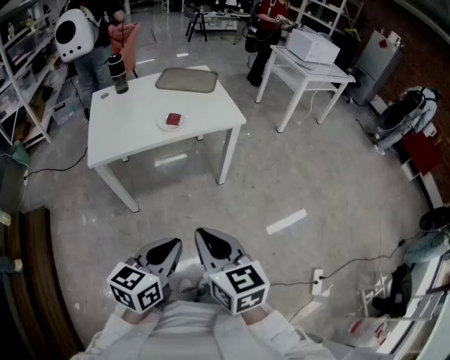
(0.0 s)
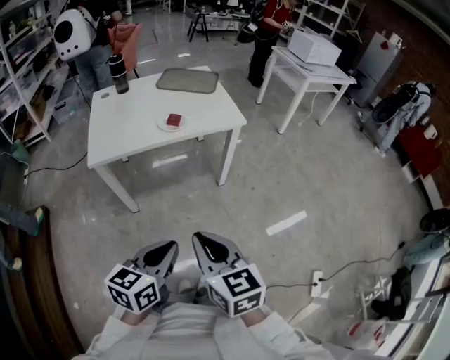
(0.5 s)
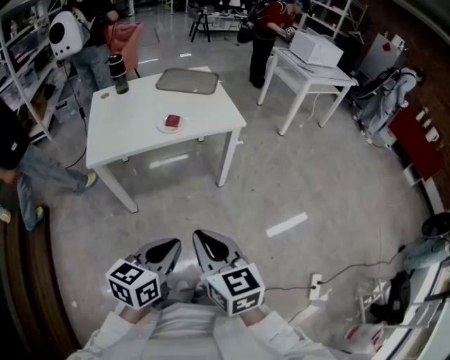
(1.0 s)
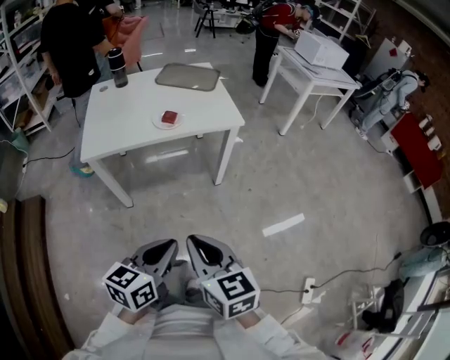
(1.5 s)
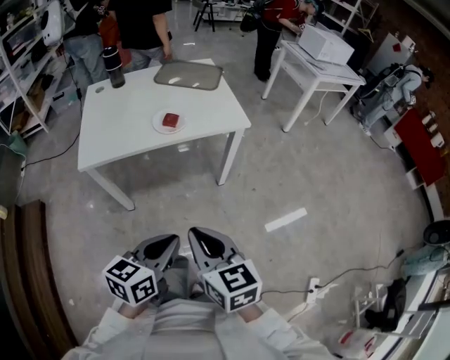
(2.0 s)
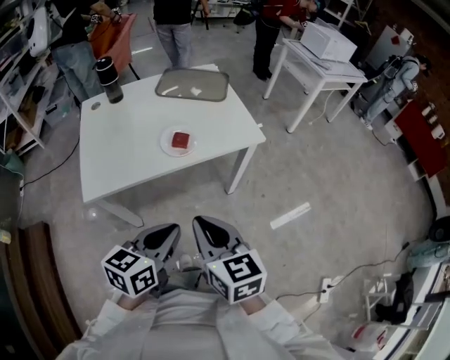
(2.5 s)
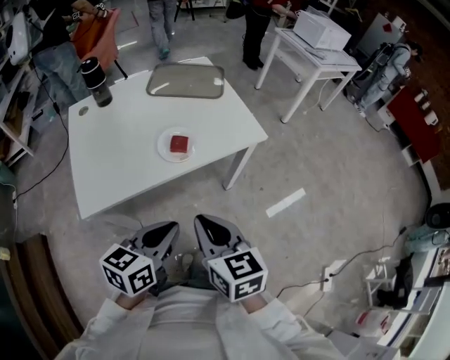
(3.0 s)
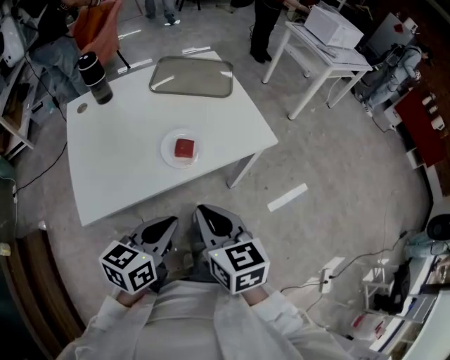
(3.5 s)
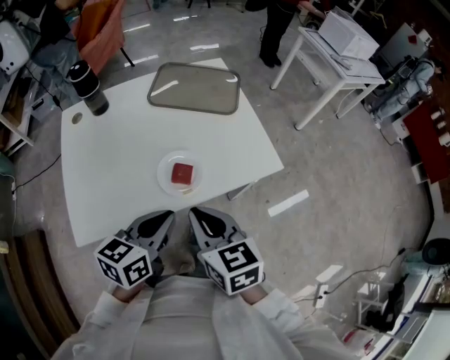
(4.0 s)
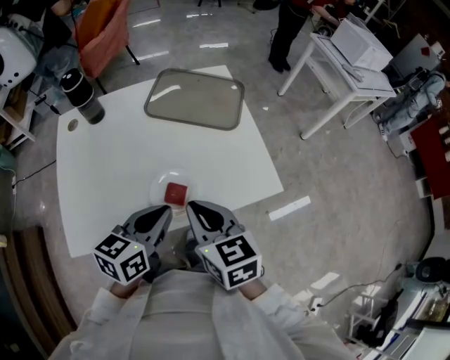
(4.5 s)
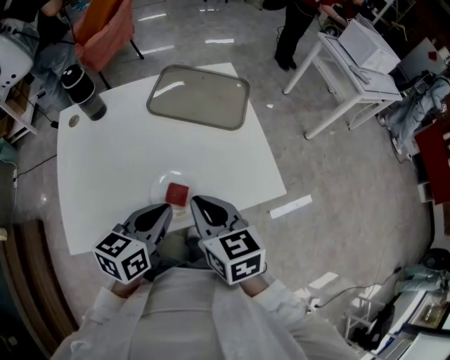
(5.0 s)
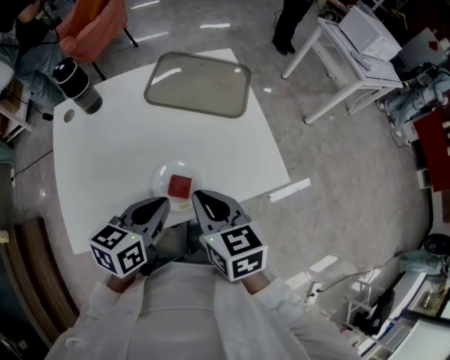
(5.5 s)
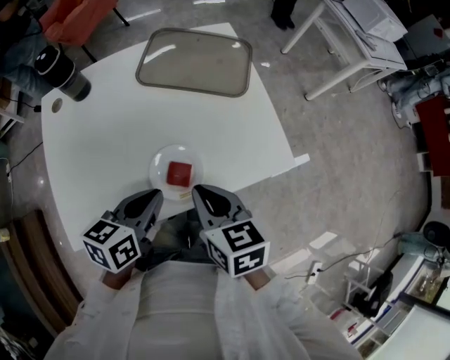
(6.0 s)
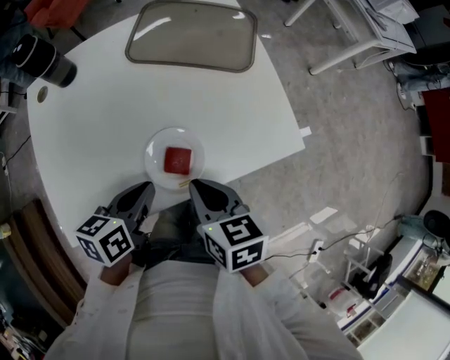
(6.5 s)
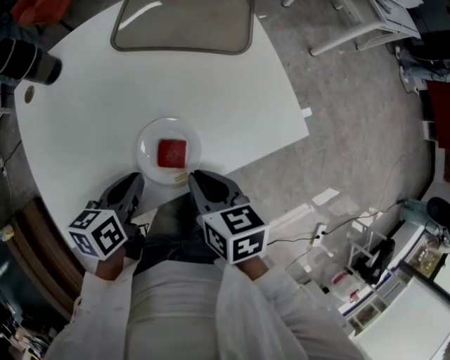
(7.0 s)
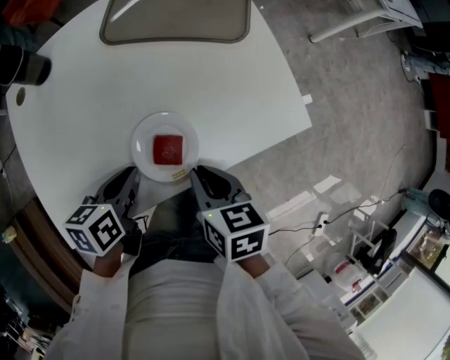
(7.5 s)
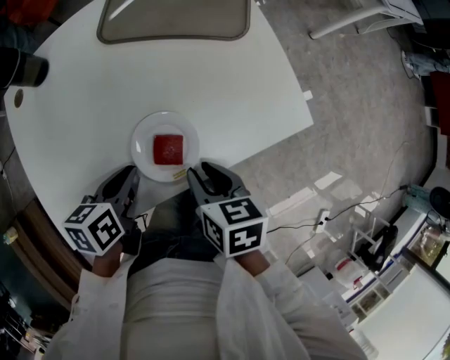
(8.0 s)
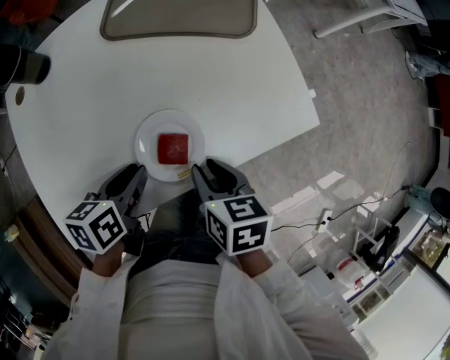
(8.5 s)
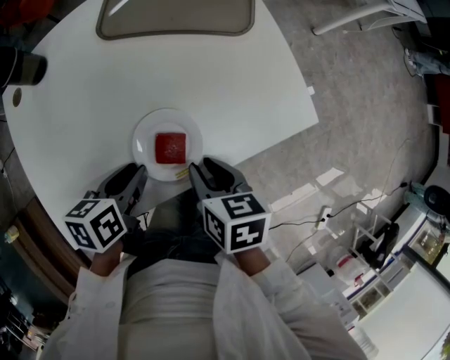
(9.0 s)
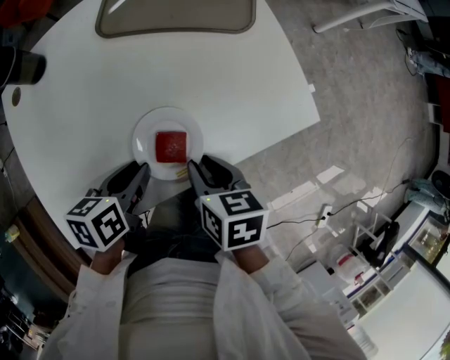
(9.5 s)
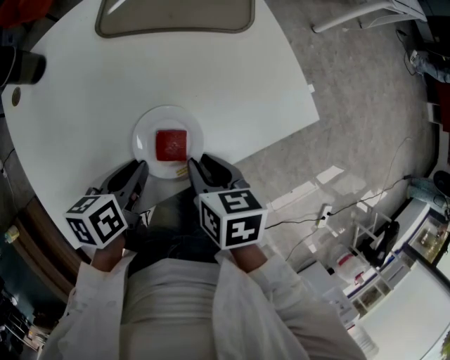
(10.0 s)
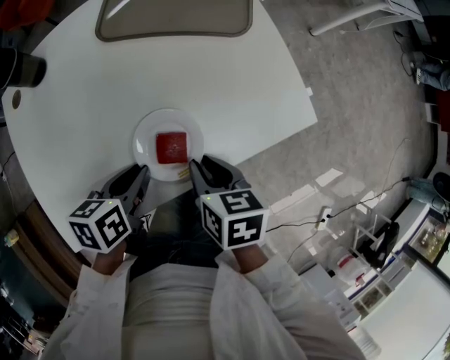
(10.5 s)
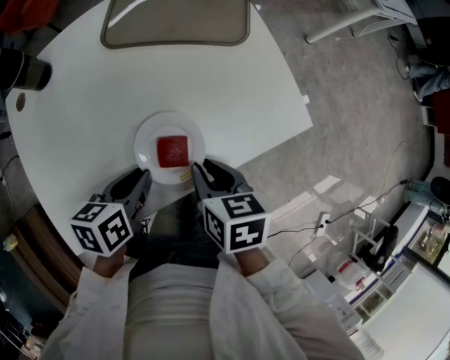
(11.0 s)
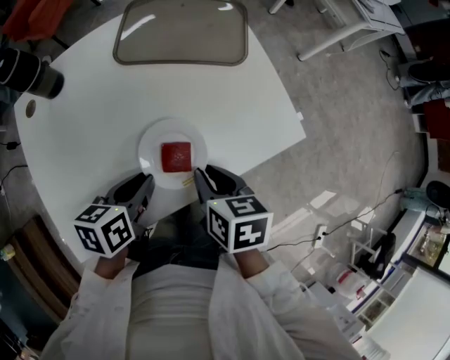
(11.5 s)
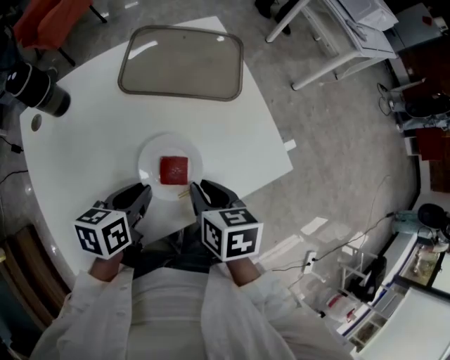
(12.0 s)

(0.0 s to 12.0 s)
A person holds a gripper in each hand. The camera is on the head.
0.0 s - 2.0 s: The grippers both shift forward by about 10 cm.
2.0 s - 4.0 s: The right gripper travels forward by about 35 cm; the left gripper moves forward and to the left, approximately 40 cm.
4.0 s - 6.0 s: Both grippers move forward, about 10 cm.
6.0 s - 8.0 s: The grippers both shift downward by some 10 cm. The right gripper changes its angle by roughly 20 degrees, and opens up.
8.0 s - 12.0 s: The grippers make only small movements.

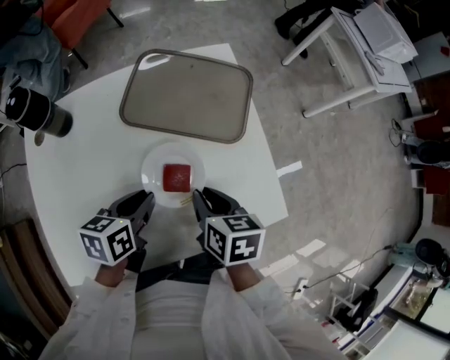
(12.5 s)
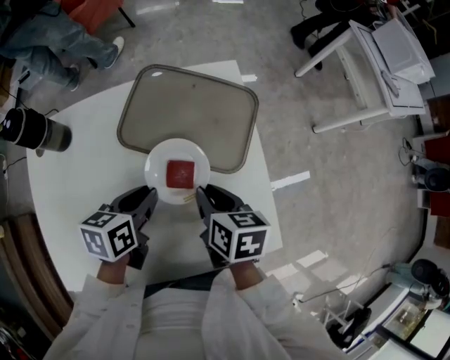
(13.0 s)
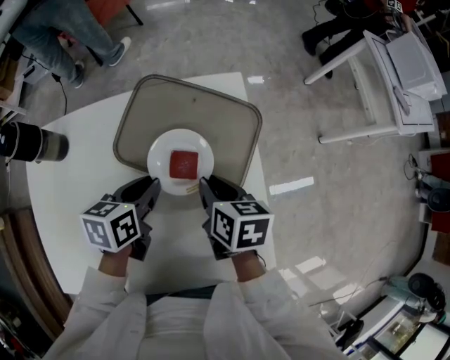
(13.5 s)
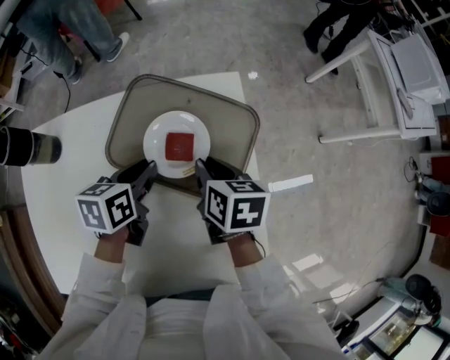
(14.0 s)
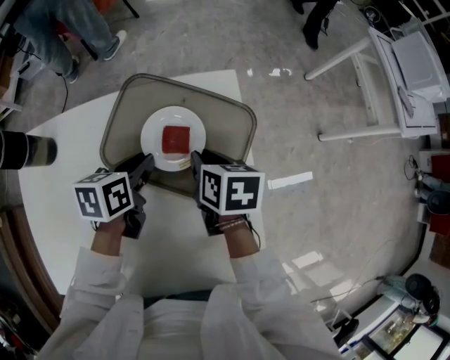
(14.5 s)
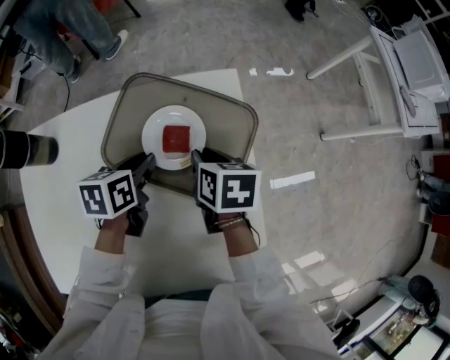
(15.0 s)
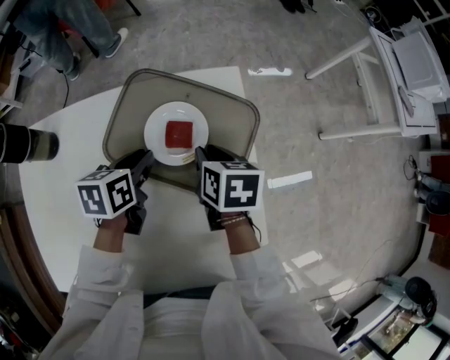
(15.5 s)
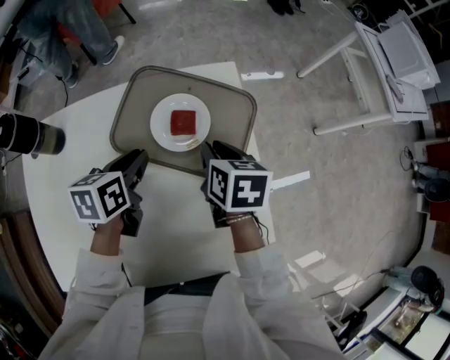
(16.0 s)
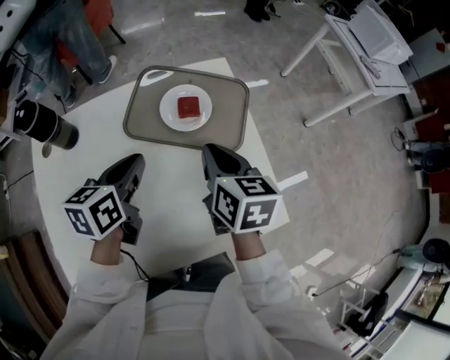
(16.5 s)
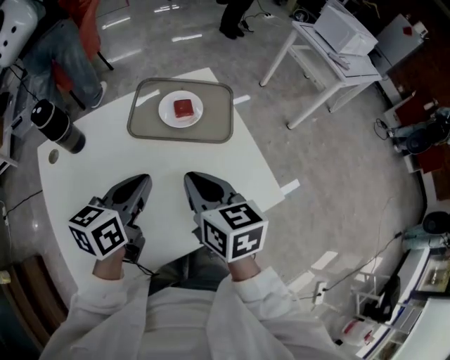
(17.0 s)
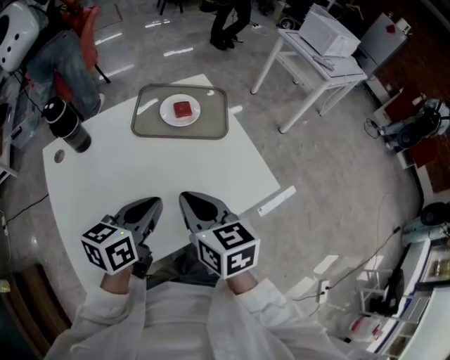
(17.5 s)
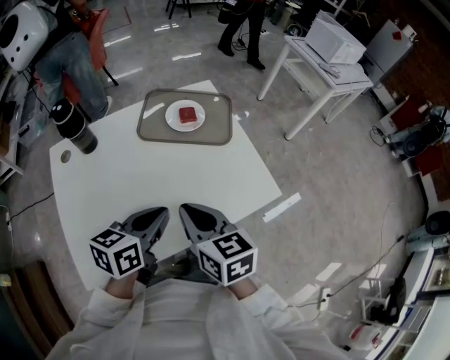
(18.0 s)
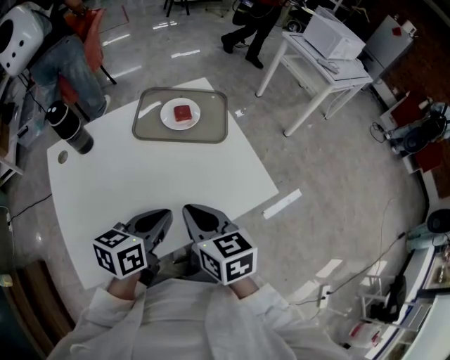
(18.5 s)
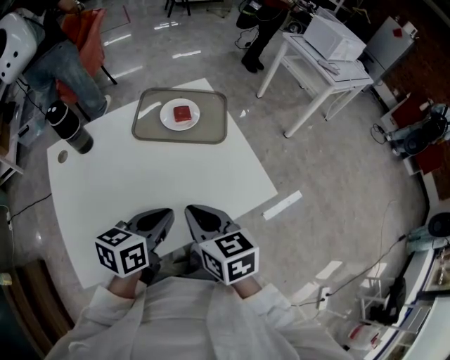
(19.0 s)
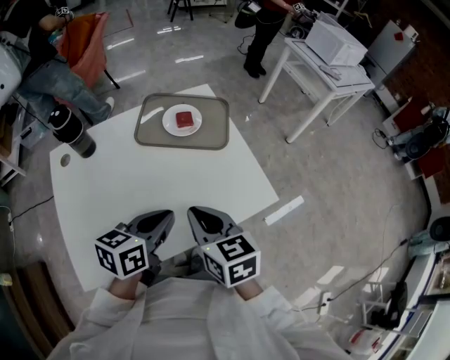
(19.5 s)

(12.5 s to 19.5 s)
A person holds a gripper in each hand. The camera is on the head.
12.5 s - 14.5 s: Both grippers travel together forward, some 25 cm.
14.5 s - 16.0 s: There are only small adjustments of the grippers.
16.0 s - 17.5 s: The two grippers go roughly 35 cm backward and upward. The right gripper rotates roughly 20 degrees, while the left gripper turns by approximately 30 degrees.
17.5 s - 19.5 s: The grippers move only a little.

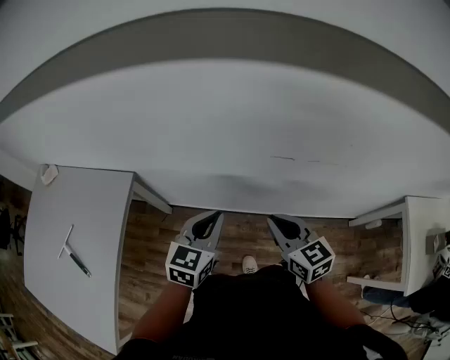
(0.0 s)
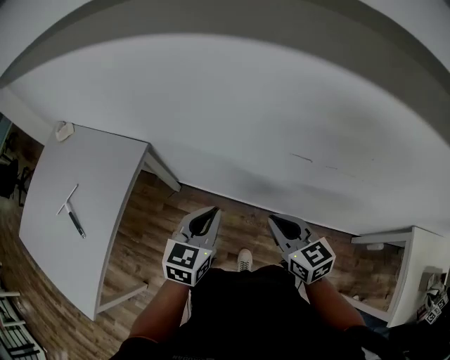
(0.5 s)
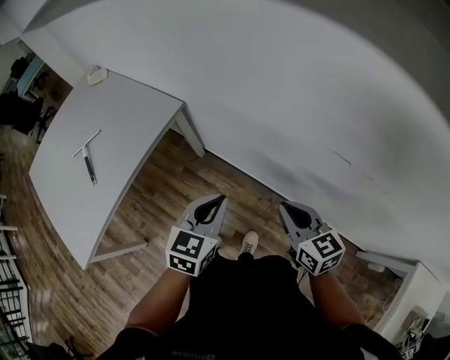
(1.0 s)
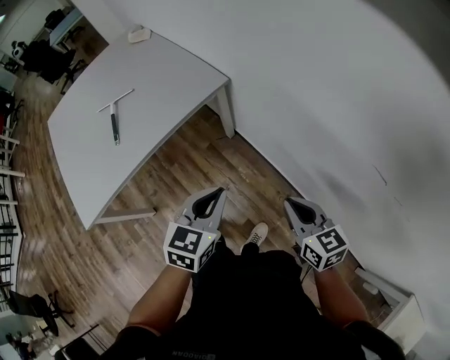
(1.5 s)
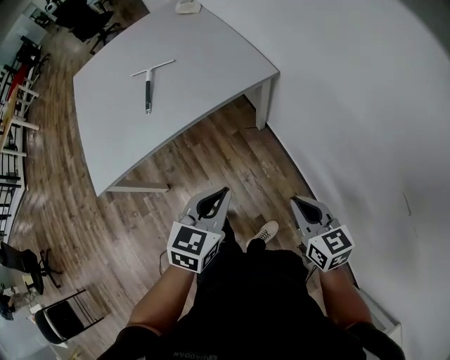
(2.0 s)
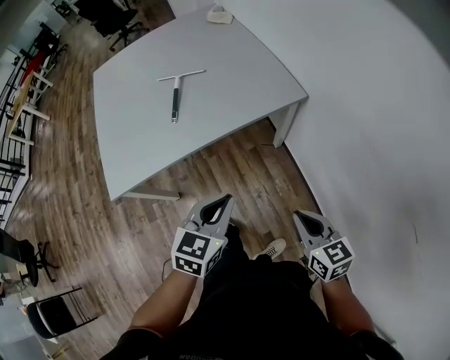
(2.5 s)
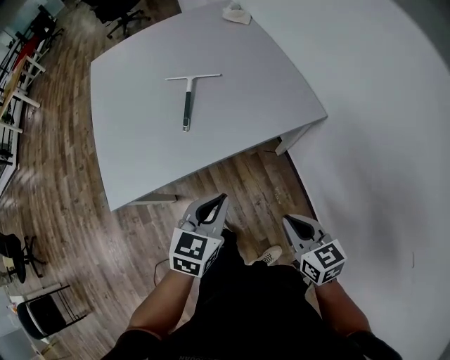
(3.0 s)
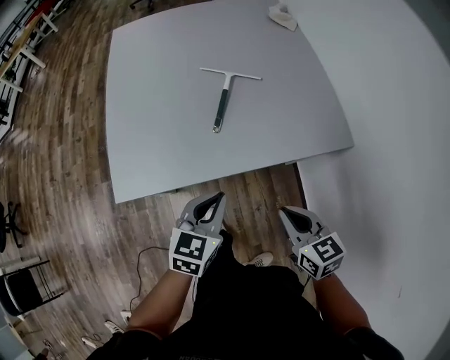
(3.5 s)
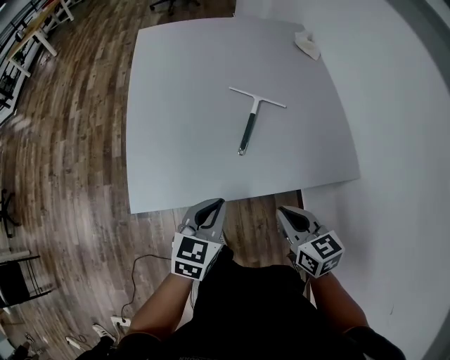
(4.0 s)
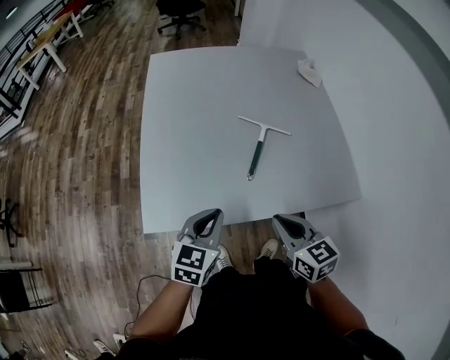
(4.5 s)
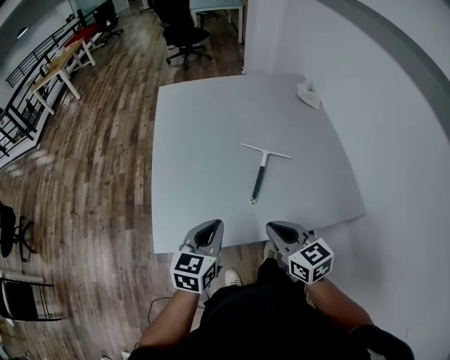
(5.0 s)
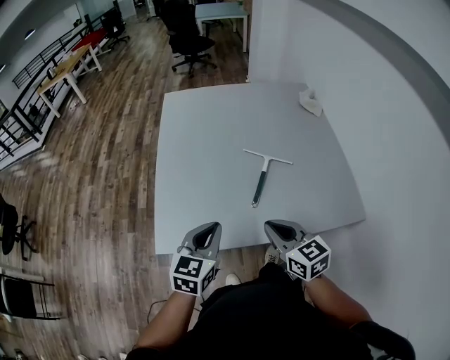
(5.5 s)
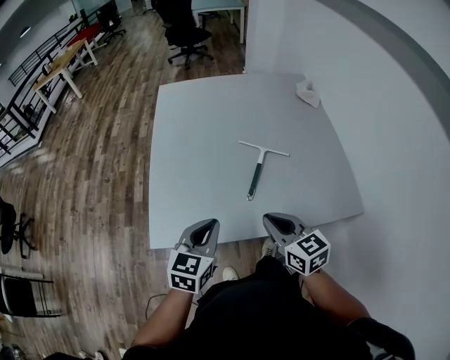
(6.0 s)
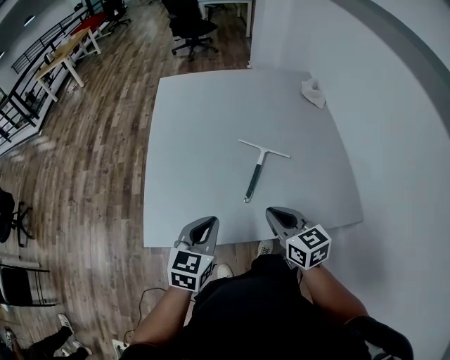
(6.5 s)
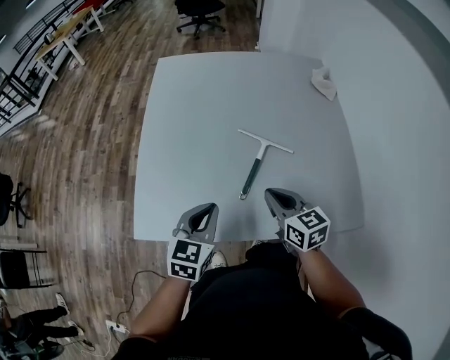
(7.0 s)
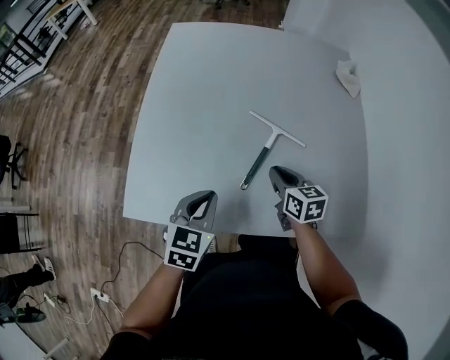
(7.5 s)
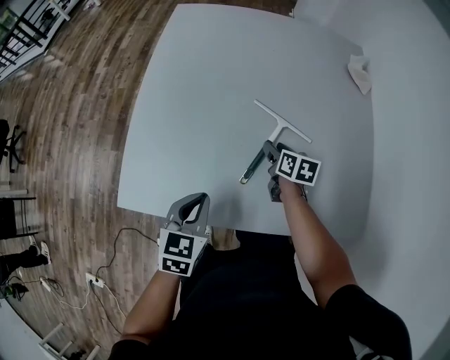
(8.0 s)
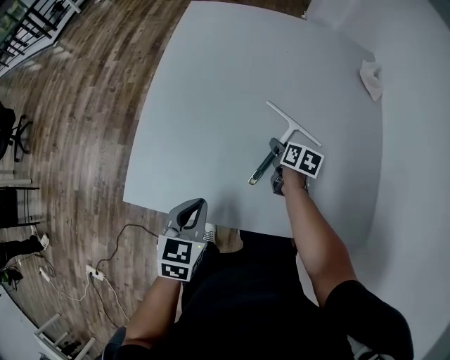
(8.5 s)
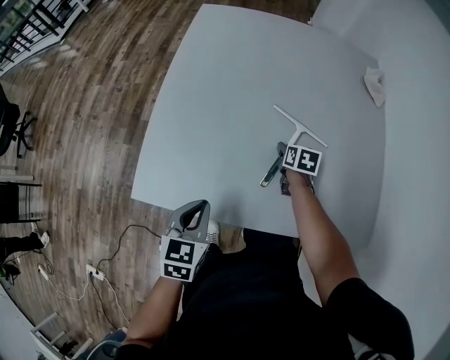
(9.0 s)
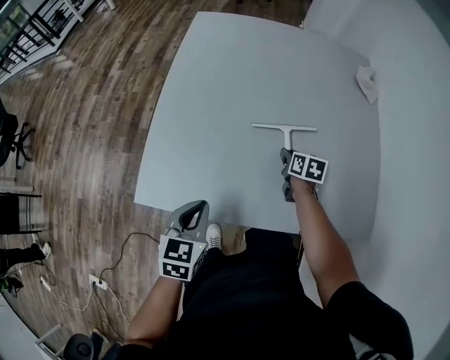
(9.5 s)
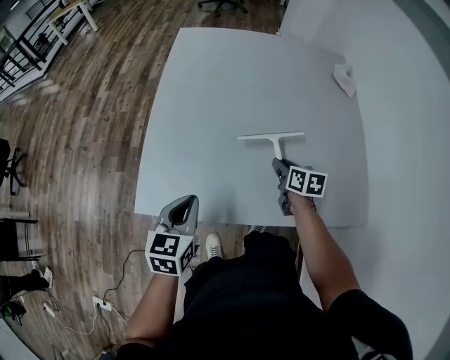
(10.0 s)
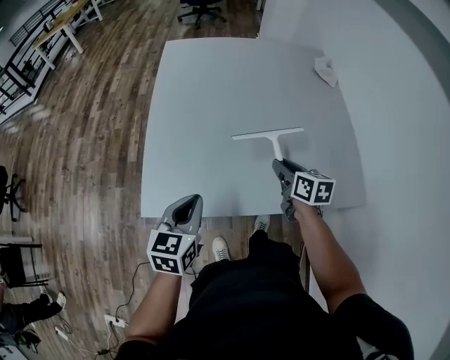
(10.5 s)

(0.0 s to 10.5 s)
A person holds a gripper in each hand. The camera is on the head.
0.0 s - 2.0 s: The right gripper moves about 25 cm, and changes its angle by roughly 50 degrees. The left gripper shifts by approximately 30 cm, and rotates some 50 degrees.
2.0 s - 4.0 s: Both grippers are carried to the left and forward, roughly 40 cm. The right gripper turns by about 30 degrees. The left gripper swivels approximately 20 degrees.
4.0 s - 6.5 s: The right gripper shifts roughly 10 cm forward. The left gripper shifts approximately 5 cm forward.
6.5 s - 8.5 s: The left gripper moves downward, roughly 10 cm, and rotates about 20 degrees; the right gripper heads downward and forward, covering approximately 35 cm, turns by approximately 40 degrees, and opens up.
8.5 s - 10.5 s: The left gripper heads upward and to the left, covering roughly 10 cm. The right gripper travels upward and backward by about 25 cm, and closes.
